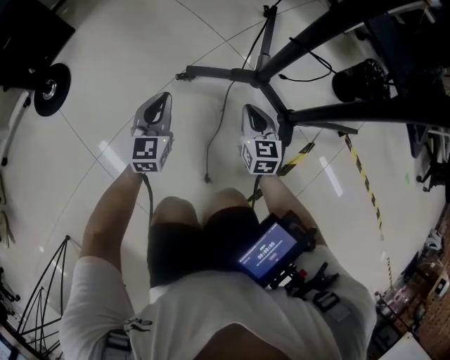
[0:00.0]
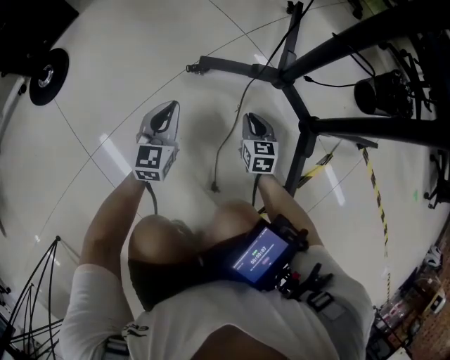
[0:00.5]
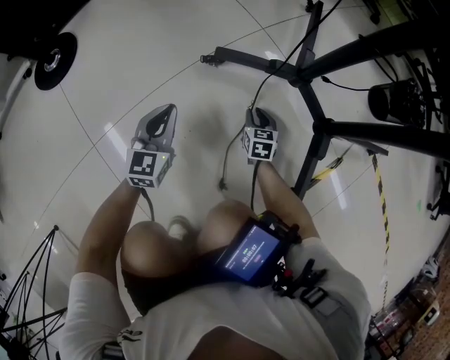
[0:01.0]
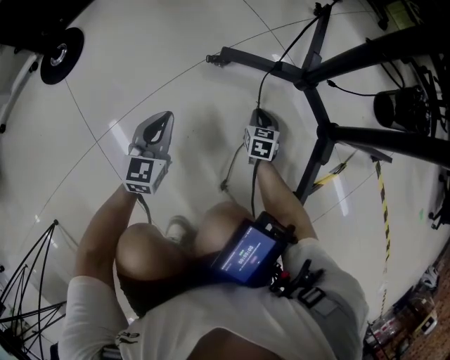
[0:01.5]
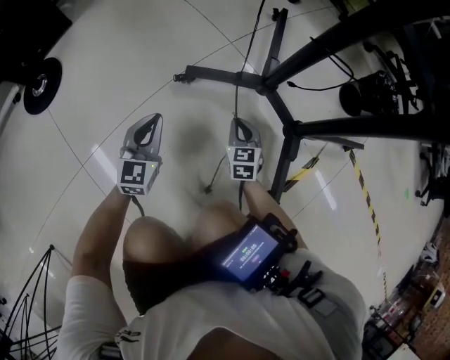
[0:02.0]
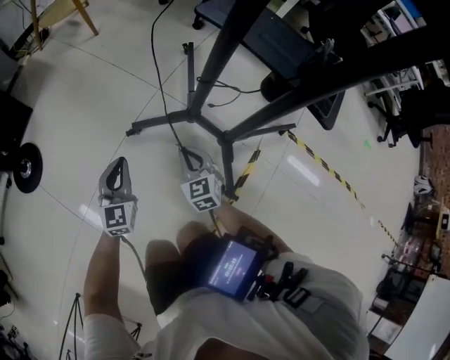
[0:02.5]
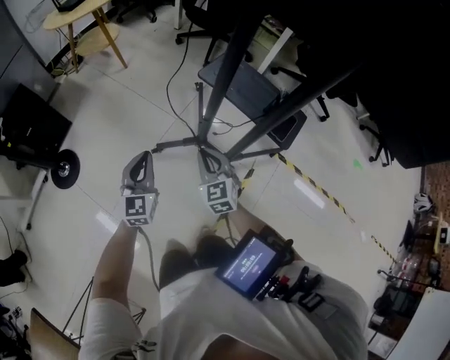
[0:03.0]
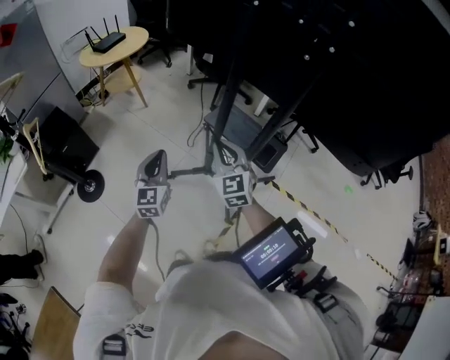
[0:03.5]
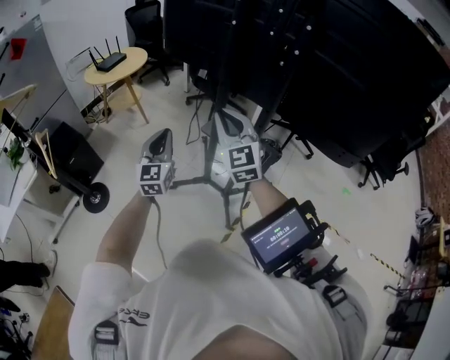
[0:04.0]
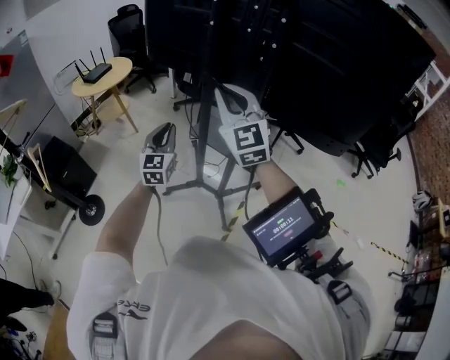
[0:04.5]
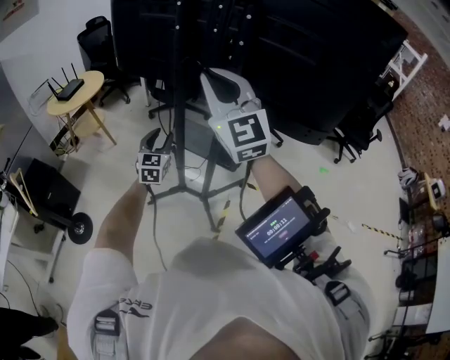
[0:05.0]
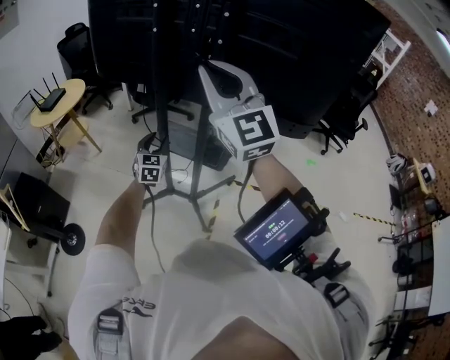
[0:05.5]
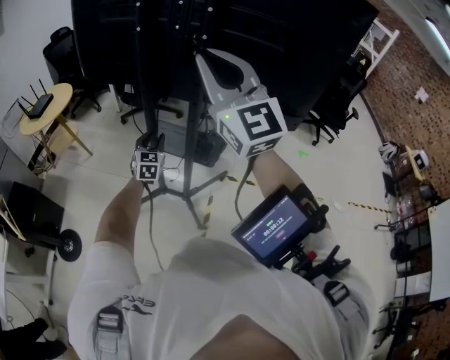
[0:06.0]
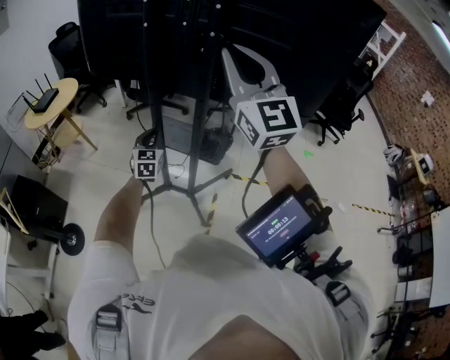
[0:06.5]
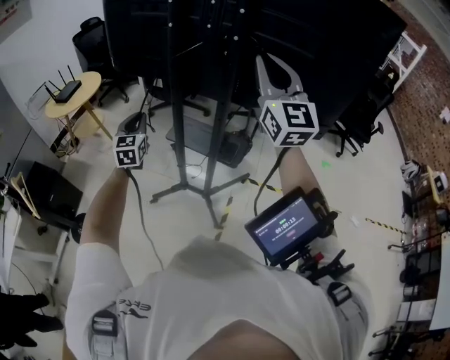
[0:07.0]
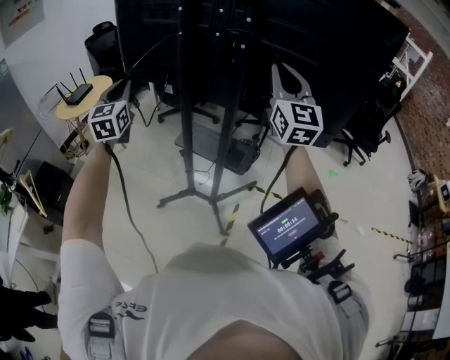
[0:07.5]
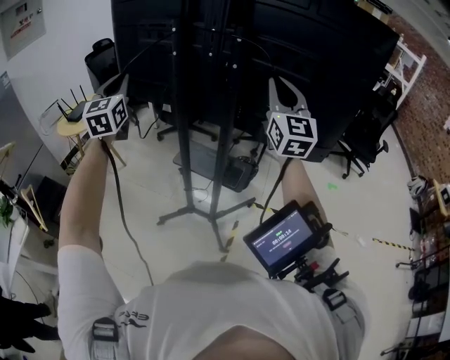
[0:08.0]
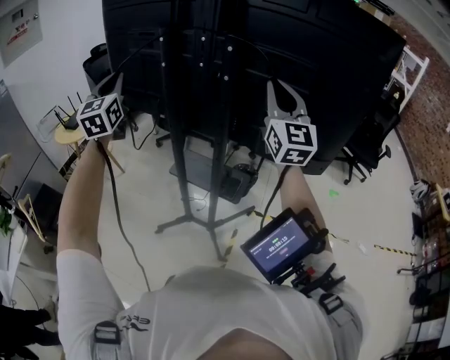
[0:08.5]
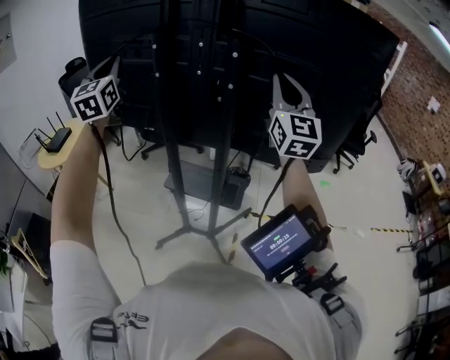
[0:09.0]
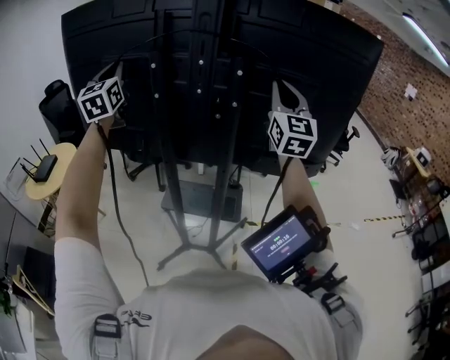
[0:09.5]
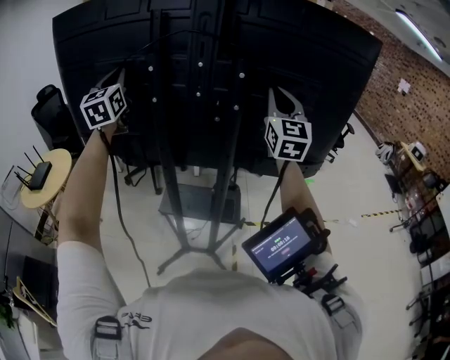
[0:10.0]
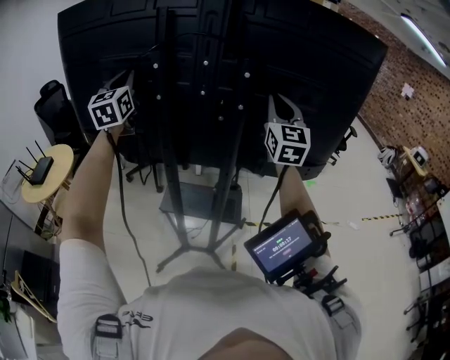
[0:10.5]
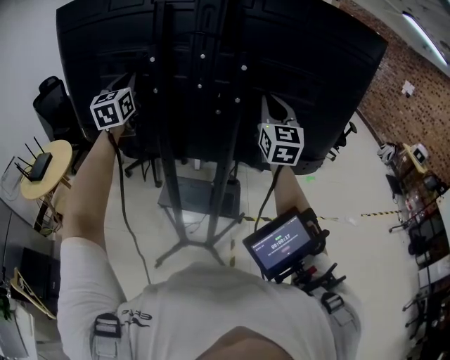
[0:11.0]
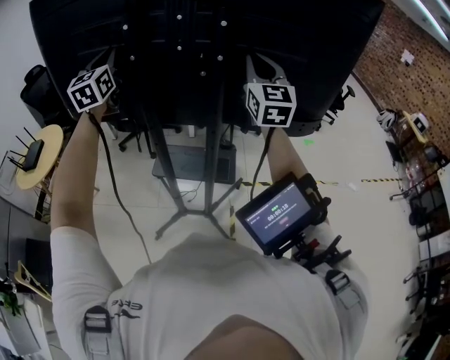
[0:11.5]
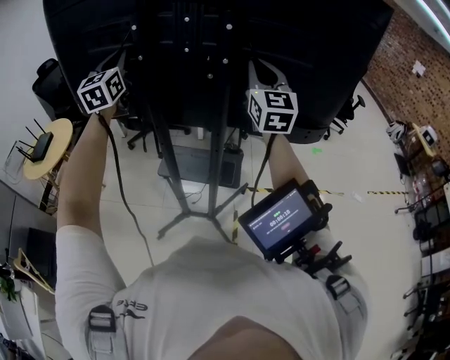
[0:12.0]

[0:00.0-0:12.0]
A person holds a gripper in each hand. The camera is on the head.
0:00.0 to 0:02.0: The left gripper goes some 5 cm downward. Meanwhile the right gripper travels downward by approximately 15 cm.
0:02.0 to 0:04.0: The two grippers go roughly 90 cm upward. The right gripper tilts its fingers about 40 degrees upward.
0:04.0 to 0:06.0: The left gripper travels to the right, forward and downward by some 25 cm, changes its angle by approximately 30 degrees, and opens its fingers. The right gripper shifts some 25 cm upward and to the right.
0:06.0 to 0:08.0: The left gripper is displaced upward and to the left by approximately 40 cm, rotates some 30 degrees, and closes up, while the right gripper heads to the right and forward, covering roughly 15 cm.
0:08.0 to 0:10.0: The left gripper goes roughly 25 cm forward. The right gripper travels forward by some 10 cm, and rotates about 20 degrees.
0:10.0 to 0:12.0: The grippers both shift downward by about 5 cm.

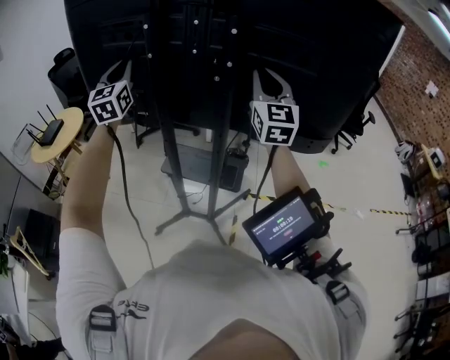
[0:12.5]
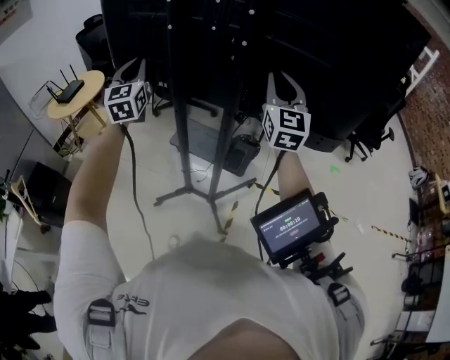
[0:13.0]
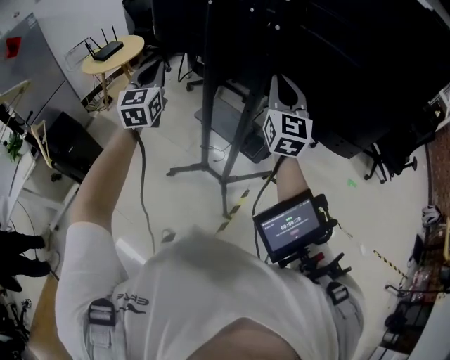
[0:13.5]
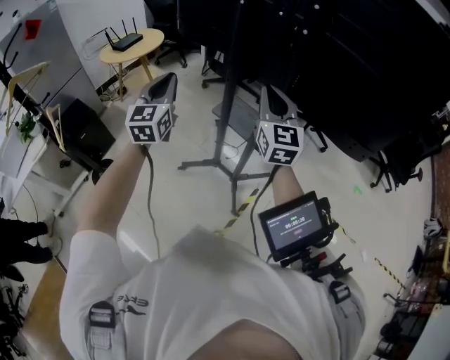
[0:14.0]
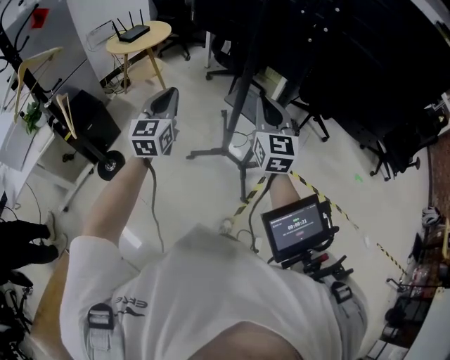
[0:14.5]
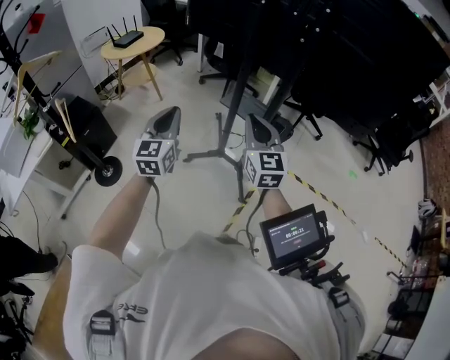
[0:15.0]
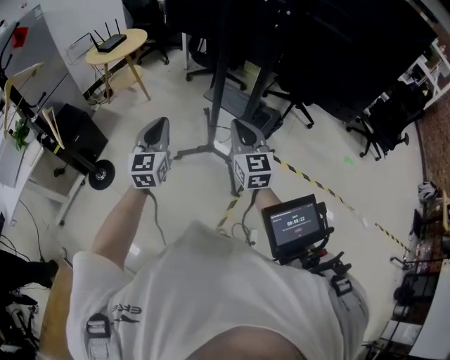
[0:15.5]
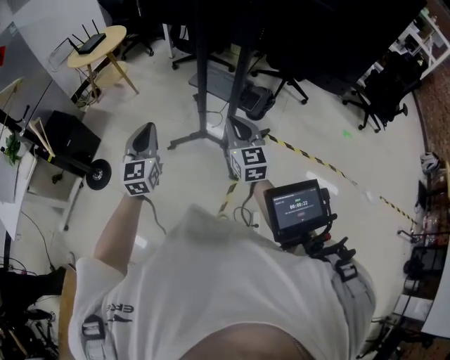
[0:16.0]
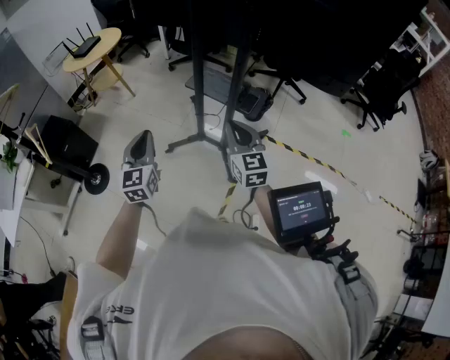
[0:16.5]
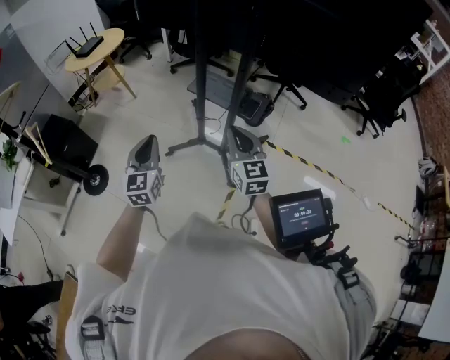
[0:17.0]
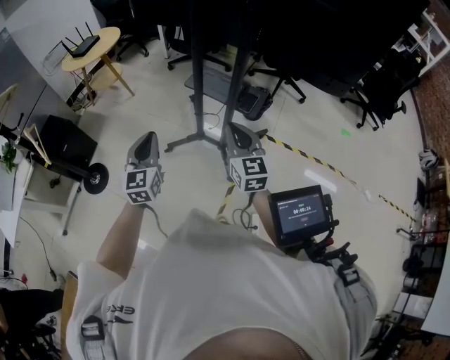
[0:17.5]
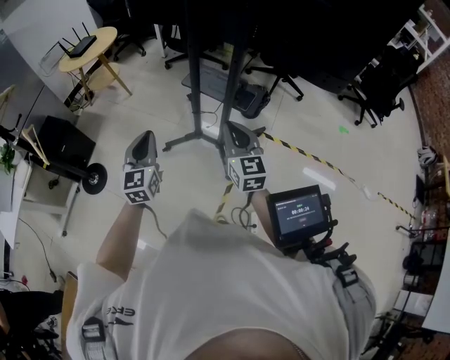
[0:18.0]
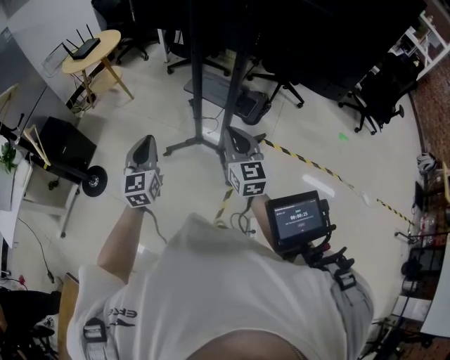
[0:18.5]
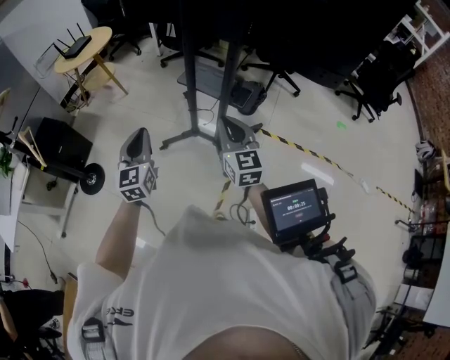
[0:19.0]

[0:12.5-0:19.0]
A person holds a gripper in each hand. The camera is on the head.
0:12.5 to 0:14.5: The right gripper heads to the left, backward and downward, covering about 35 cm, and changes its angle by some 30 degrees. Meanwhile the left gripper travels backward and downward by about 40 cm.
0:14.5 to 0:17.0: The two grippers go approximately 15 cm downward, backward and to the right.
0:17.0 to 0:19.0: Both grippers stay put.

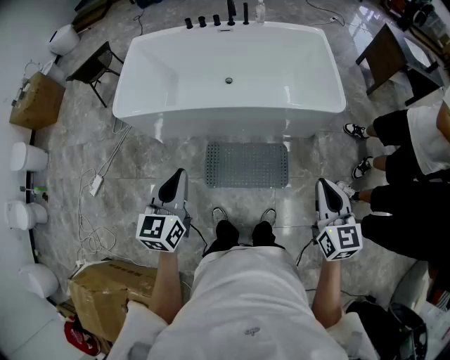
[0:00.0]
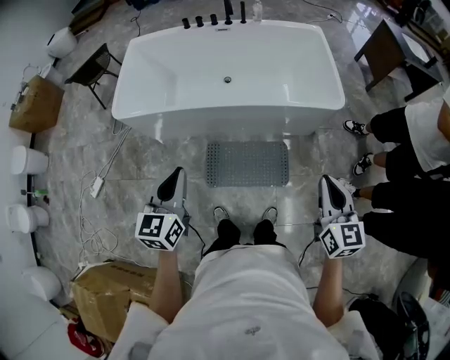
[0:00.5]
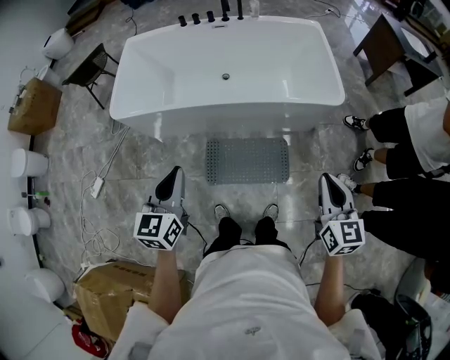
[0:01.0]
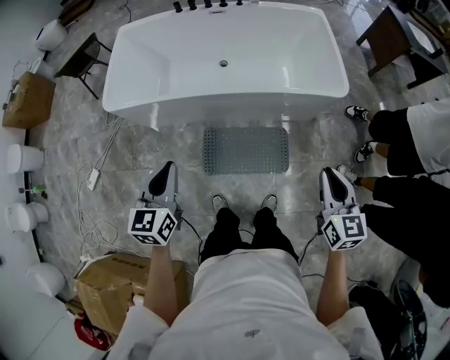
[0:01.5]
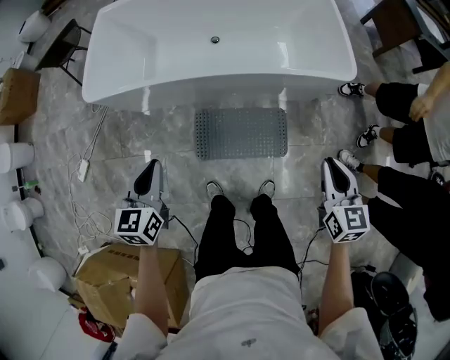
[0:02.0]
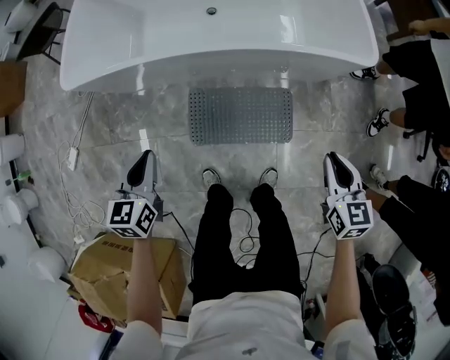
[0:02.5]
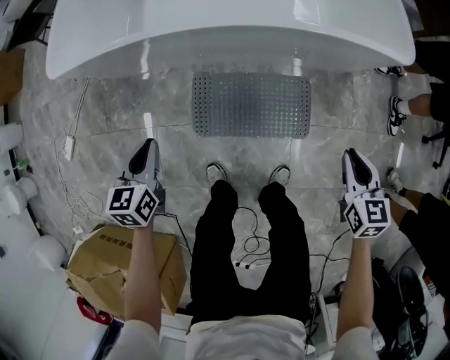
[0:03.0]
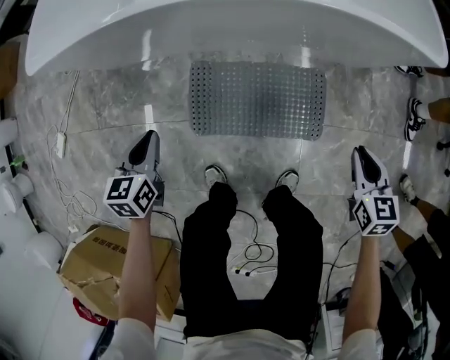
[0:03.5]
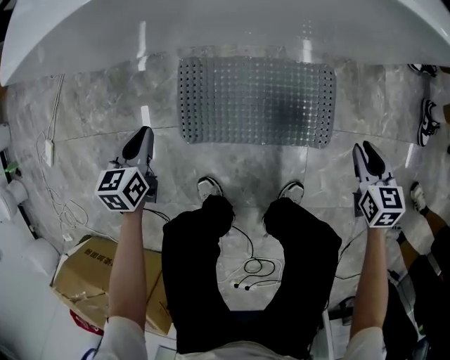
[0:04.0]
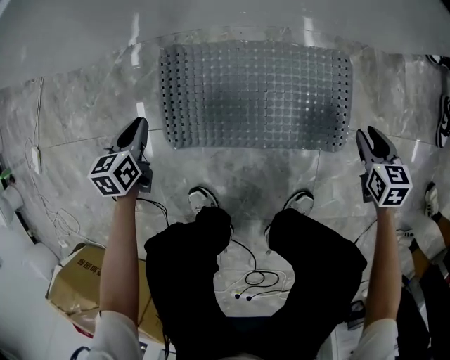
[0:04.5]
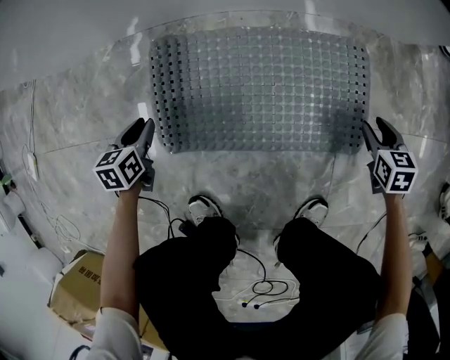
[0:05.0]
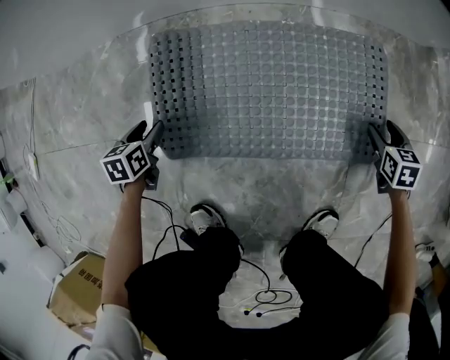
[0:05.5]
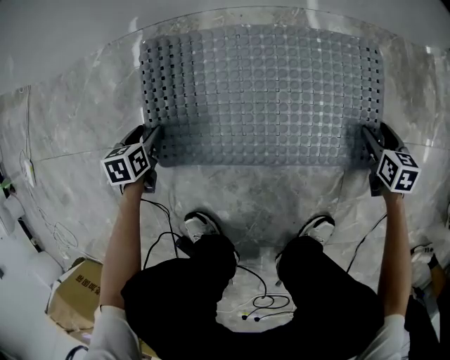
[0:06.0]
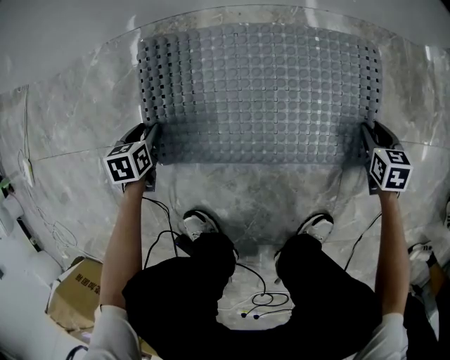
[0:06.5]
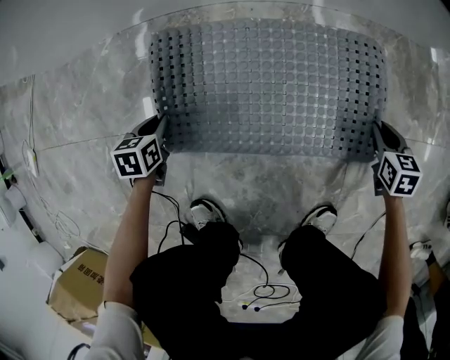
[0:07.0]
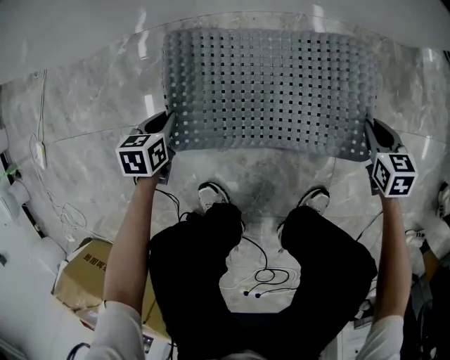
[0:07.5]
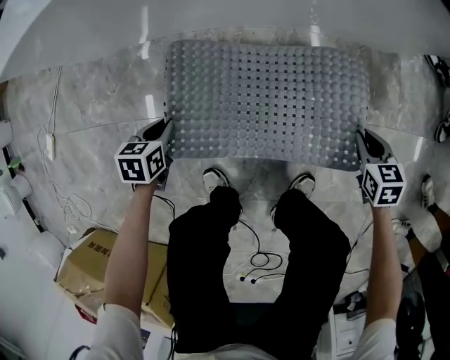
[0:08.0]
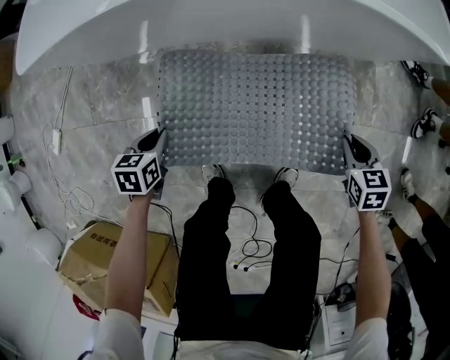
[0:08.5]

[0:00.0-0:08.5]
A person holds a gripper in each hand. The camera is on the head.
0:00.0 to 0:02.0: Both grippers travel together downward and forward, about 15 cm.
0:02.0 to 0:04.0: The two grippers go some 50 cm downward. The right gripper rotates approximately 20 degrees, while the left gripper turns by approximately 20 degrees.
0:04.0 to 0:06.5: The two grippers go some 35 cm downward. The left gripper turns by roughly 20 degrees, and opens; the right gripper opens and closes again.
0:06.5 to 0:08.5: Both grippers move upward, approximately 40 cm. The left gripper closes up; the right gripper closes up.
